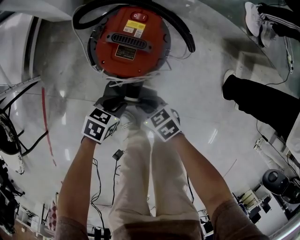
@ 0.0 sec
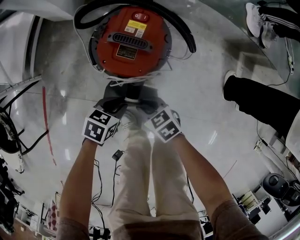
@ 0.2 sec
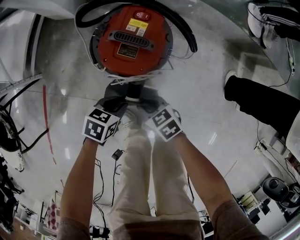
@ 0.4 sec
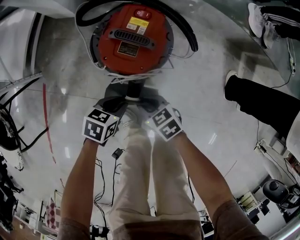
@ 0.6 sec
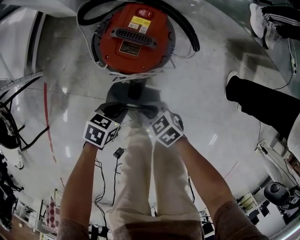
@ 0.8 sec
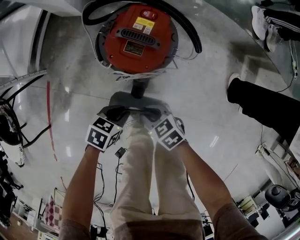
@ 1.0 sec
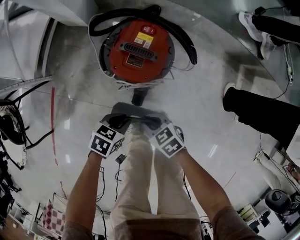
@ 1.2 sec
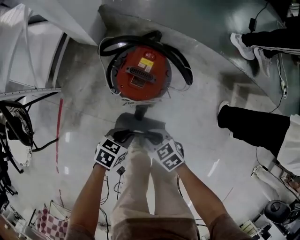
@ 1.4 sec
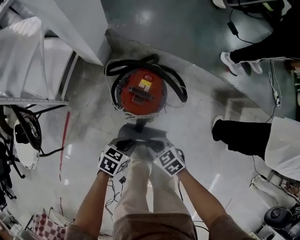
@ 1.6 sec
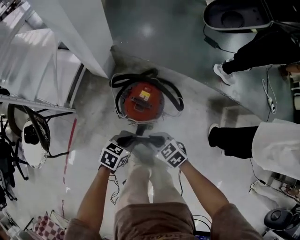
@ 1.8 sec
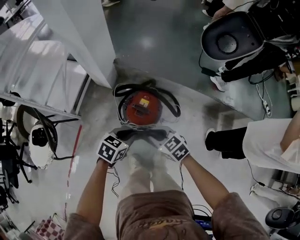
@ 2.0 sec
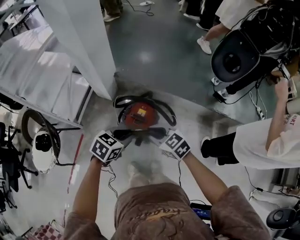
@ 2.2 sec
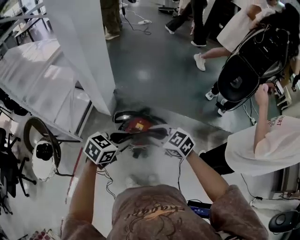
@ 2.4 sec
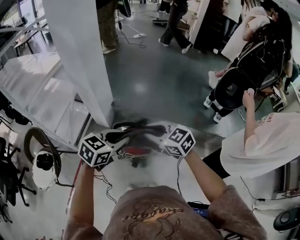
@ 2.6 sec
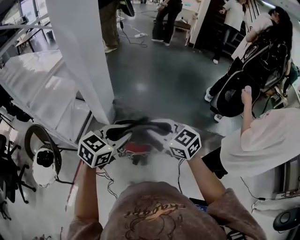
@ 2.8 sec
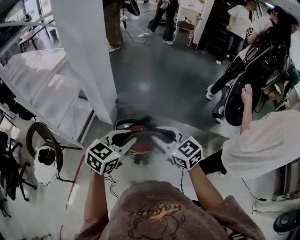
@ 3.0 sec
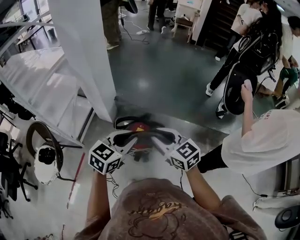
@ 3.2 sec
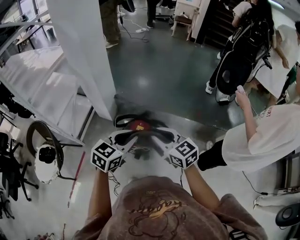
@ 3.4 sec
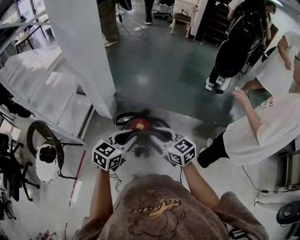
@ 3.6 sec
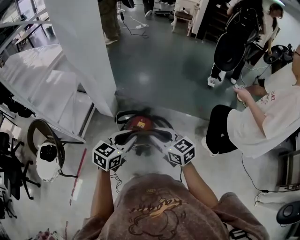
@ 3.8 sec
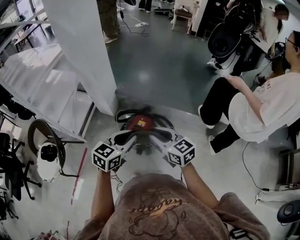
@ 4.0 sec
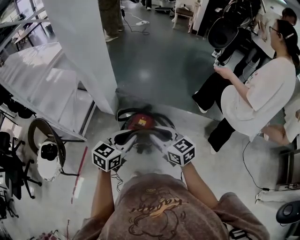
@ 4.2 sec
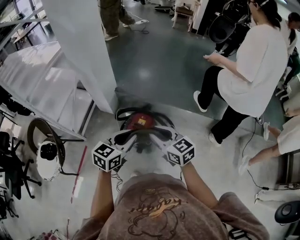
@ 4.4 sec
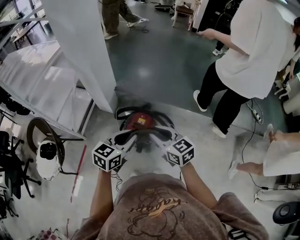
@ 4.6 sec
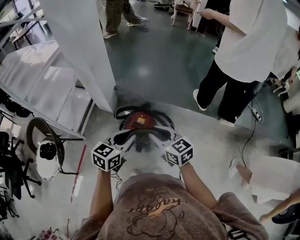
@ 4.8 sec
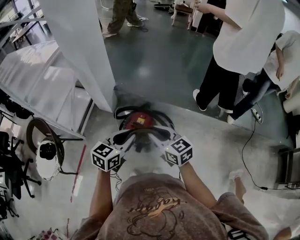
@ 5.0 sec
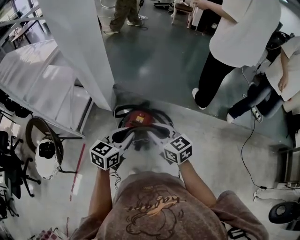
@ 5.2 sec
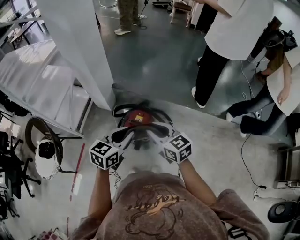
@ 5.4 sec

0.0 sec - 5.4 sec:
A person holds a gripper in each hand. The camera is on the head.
0.0 sec - 1.4 sec: Both grippers move upward, approximately 10 cm.
1.4 sec - 2.8 sec: The grippers both shift upward by roughly 60 cm. The right gripper tilts its fingers about 30 degrees upward, while the left gripper changes its angle by about 40 degrees.
2.8 sec - 4.0 sec: The two grippers go about 10 cm downward.
4.0 sec - 5.4 sec: The grippers move only a little.

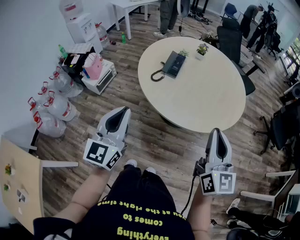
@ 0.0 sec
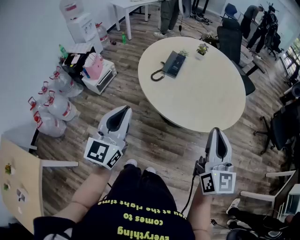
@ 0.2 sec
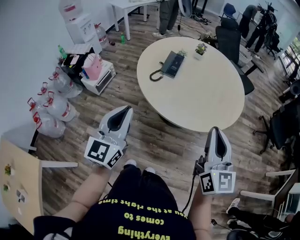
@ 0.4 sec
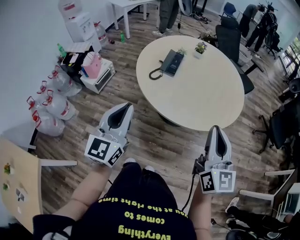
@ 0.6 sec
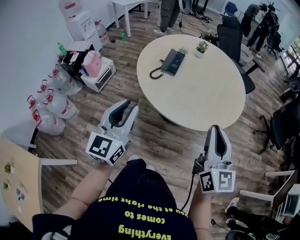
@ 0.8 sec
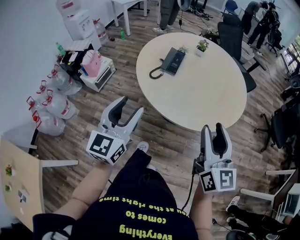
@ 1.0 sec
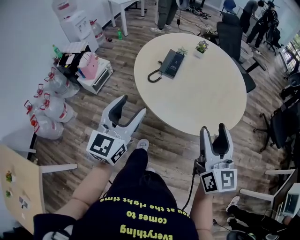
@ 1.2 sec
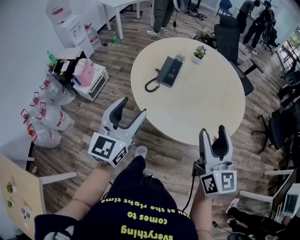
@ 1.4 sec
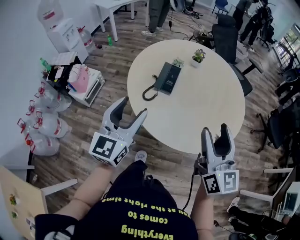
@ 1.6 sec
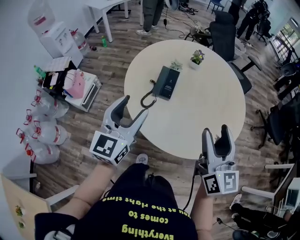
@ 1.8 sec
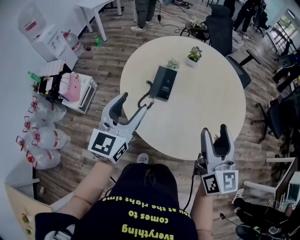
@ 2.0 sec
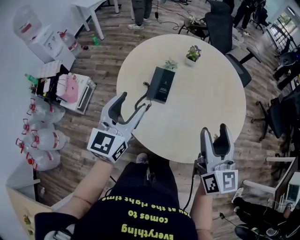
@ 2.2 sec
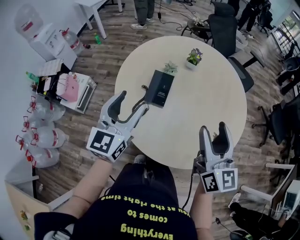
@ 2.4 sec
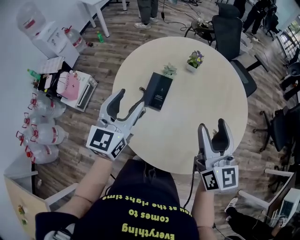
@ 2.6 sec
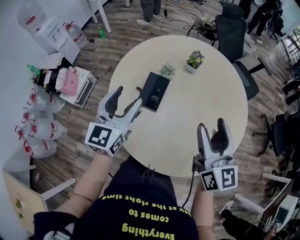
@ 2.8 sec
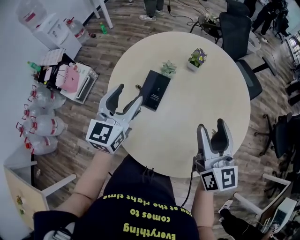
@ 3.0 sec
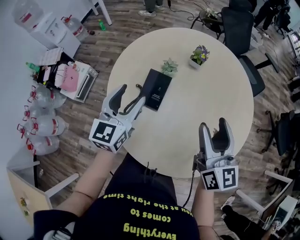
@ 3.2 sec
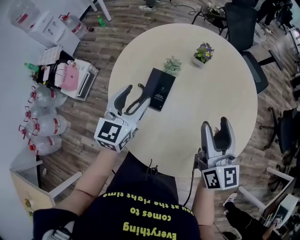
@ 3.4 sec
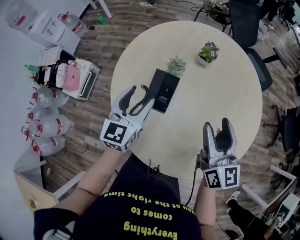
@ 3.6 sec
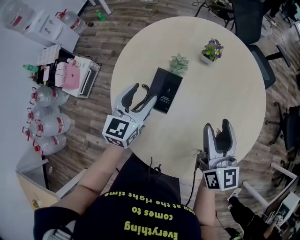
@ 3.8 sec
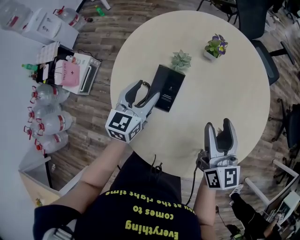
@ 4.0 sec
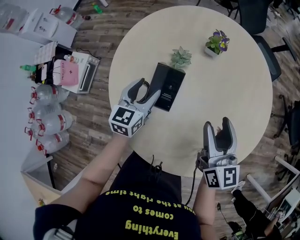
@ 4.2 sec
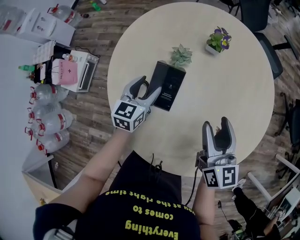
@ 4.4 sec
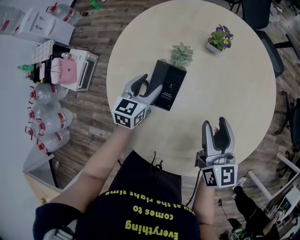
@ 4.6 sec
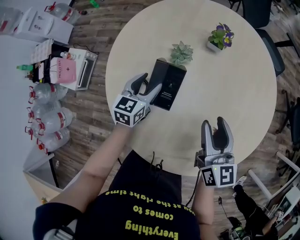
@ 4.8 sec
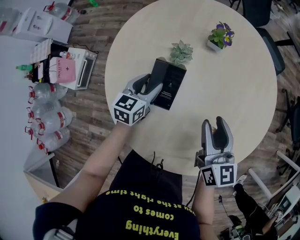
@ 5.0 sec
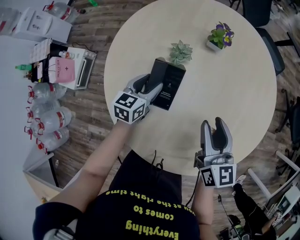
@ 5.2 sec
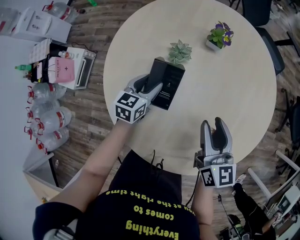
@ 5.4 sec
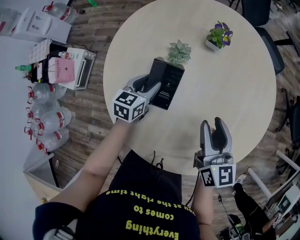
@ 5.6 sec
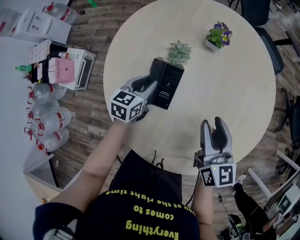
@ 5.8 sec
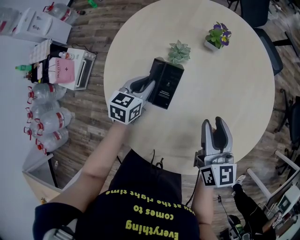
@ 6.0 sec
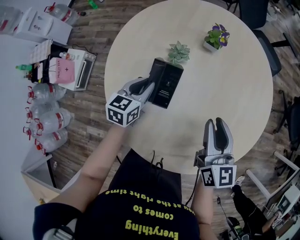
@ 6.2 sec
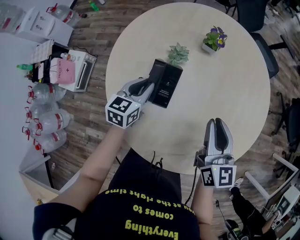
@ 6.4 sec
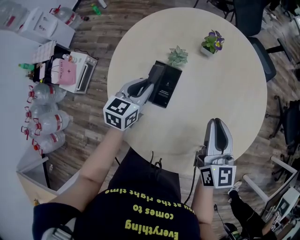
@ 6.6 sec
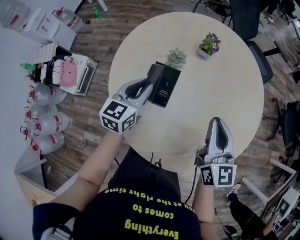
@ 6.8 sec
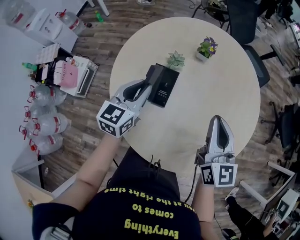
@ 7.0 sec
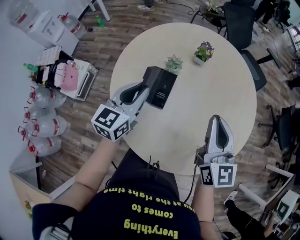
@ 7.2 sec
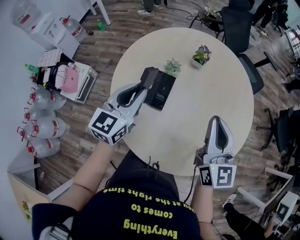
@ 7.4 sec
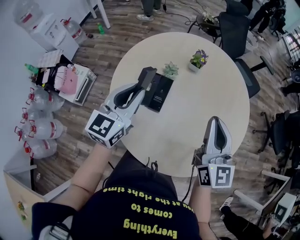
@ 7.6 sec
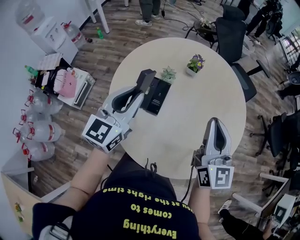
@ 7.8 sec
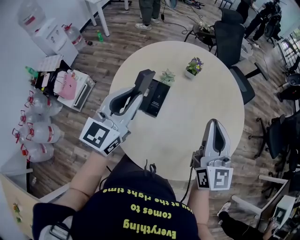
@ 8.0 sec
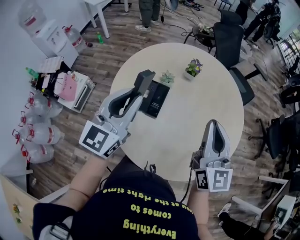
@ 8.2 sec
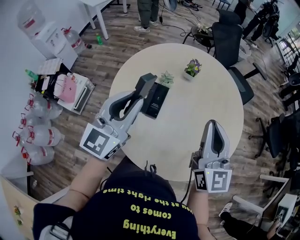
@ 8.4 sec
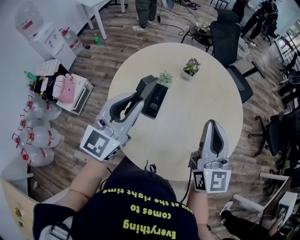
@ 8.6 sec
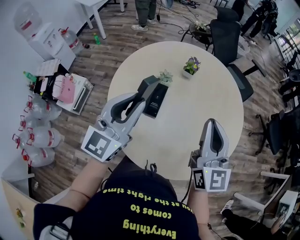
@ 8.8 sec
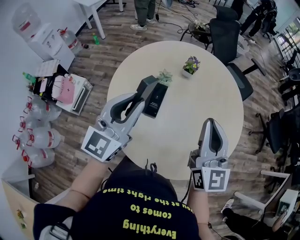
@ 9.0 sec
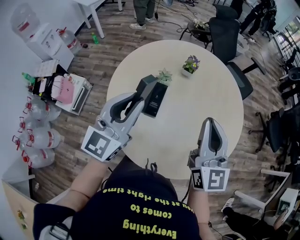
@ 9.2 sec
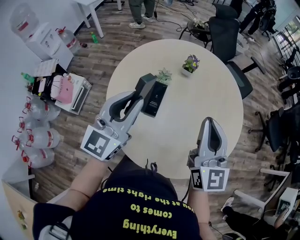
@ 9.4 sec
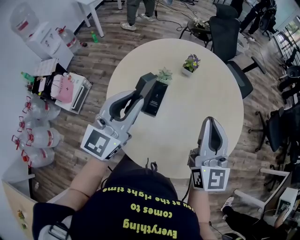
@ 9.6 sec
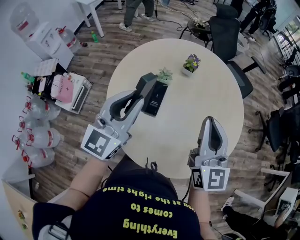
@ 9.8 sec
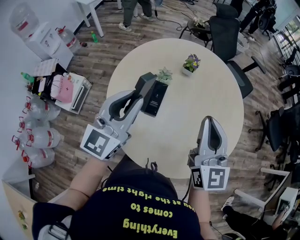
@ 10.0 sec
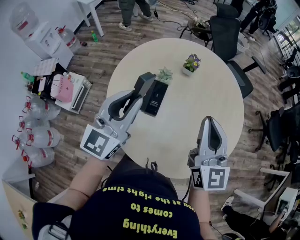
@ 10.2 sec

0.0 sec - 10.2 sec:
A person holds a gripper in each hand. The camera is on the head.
0.0 sec - 1.4 sec: Both grippers move forward, some 10 cm. The left gripper opens. The right gripper opens up.
1.4 sec - 3.0 sec: The two grippers go some 30 cm forward.
3.0 sec - 4.4 sec: The left gripper is displaced downward and forward by some 25 cm, and changes its angle by roughly 20 degrees; the right gripper shifts approximately 15 cm downward and forward.
4.4 sec - 5.8 sec: The left gripper closes up.
5.8 sec - 7.2 sec: The left gripper goes about 20 cm upward and backward, and swivels approximately 20 degrees. The right gripper is displaced upward by about 15 cm, and closes.
7.2 sec - 8.8 sec: The left gripper heads upward and backward, covering approximately 15 cm, and swivels approximately 20 degrees. The right gripper travels upward by some 5 cm.
8.8 sec - 10.2 sec: The grippers make only small movements.

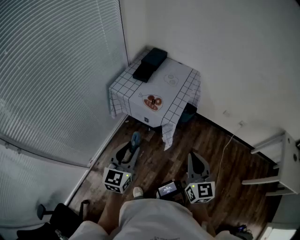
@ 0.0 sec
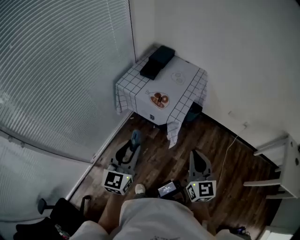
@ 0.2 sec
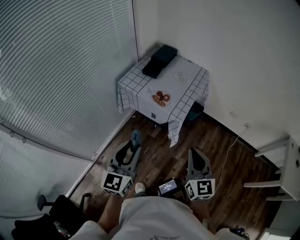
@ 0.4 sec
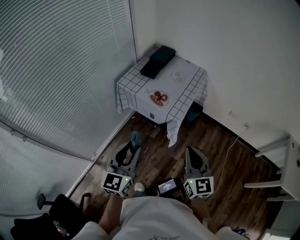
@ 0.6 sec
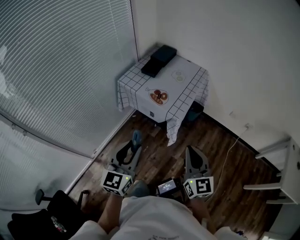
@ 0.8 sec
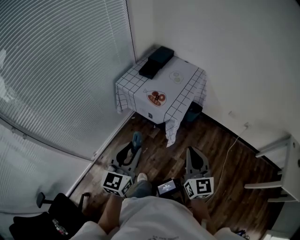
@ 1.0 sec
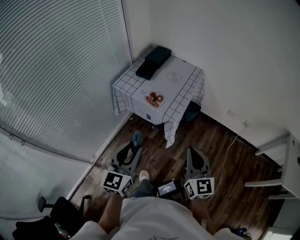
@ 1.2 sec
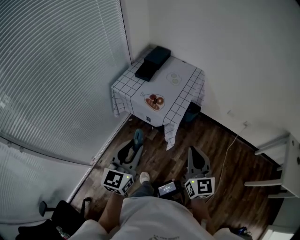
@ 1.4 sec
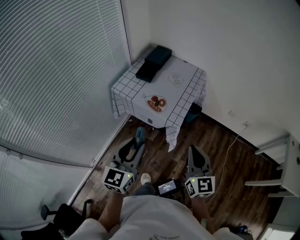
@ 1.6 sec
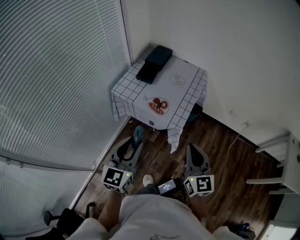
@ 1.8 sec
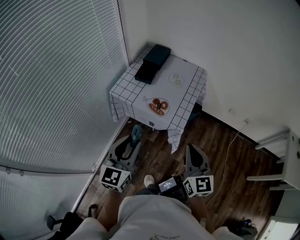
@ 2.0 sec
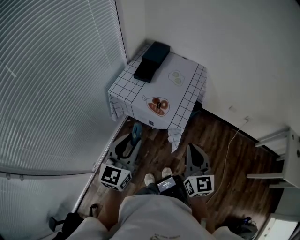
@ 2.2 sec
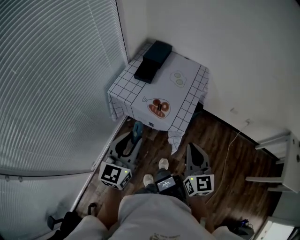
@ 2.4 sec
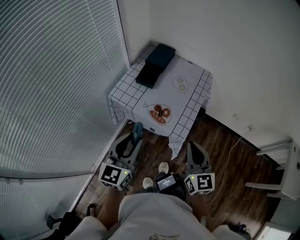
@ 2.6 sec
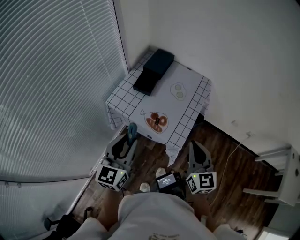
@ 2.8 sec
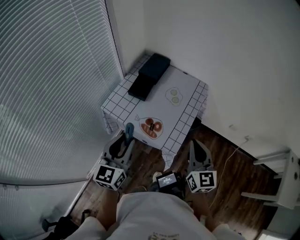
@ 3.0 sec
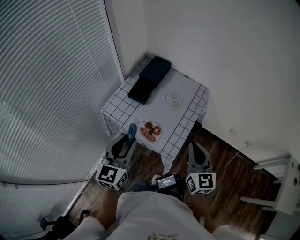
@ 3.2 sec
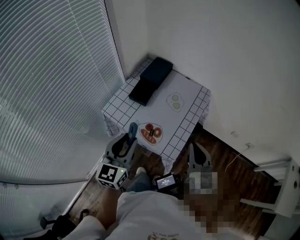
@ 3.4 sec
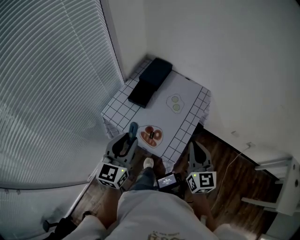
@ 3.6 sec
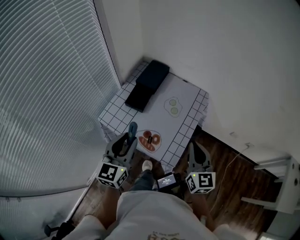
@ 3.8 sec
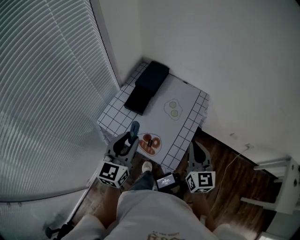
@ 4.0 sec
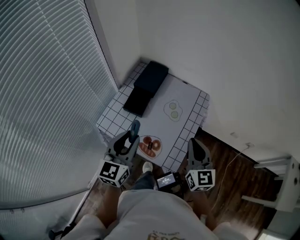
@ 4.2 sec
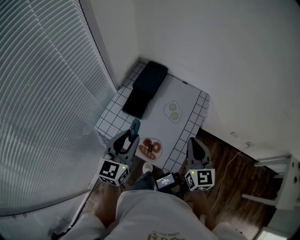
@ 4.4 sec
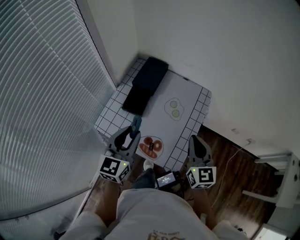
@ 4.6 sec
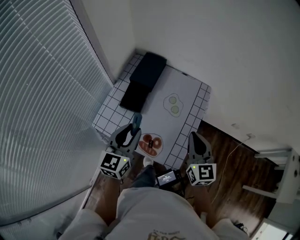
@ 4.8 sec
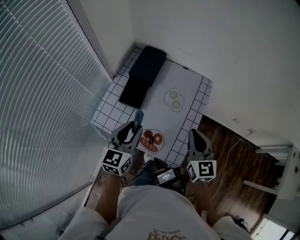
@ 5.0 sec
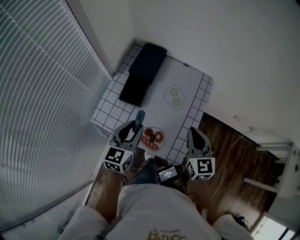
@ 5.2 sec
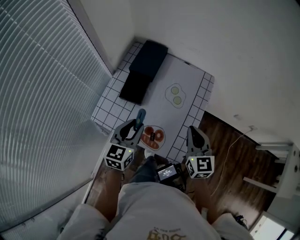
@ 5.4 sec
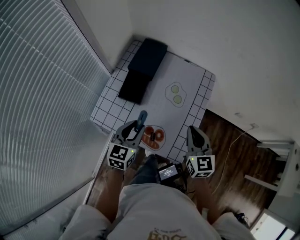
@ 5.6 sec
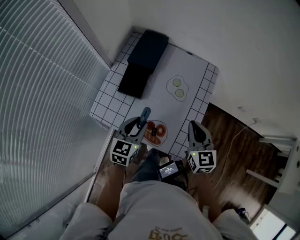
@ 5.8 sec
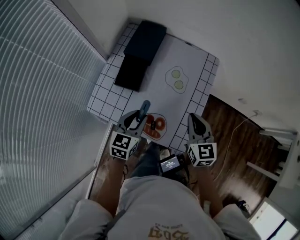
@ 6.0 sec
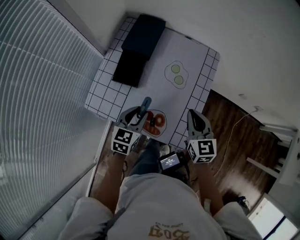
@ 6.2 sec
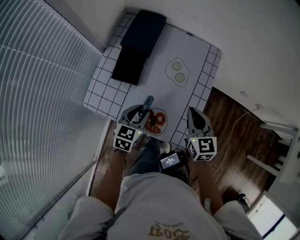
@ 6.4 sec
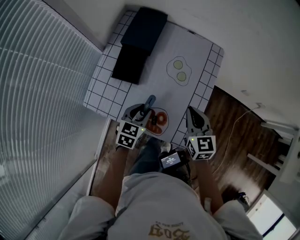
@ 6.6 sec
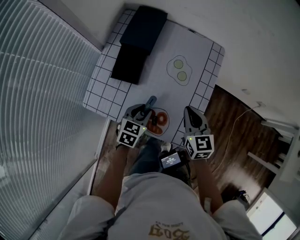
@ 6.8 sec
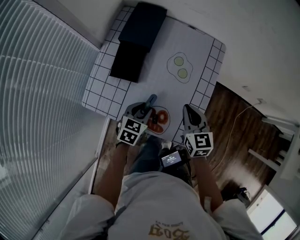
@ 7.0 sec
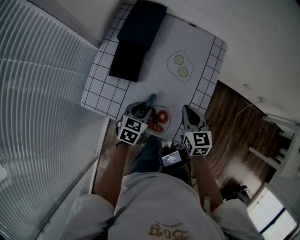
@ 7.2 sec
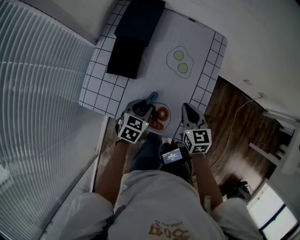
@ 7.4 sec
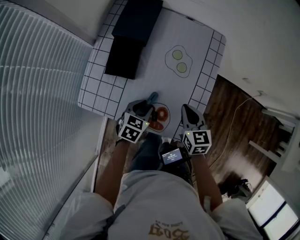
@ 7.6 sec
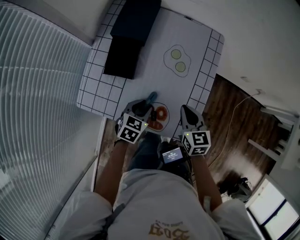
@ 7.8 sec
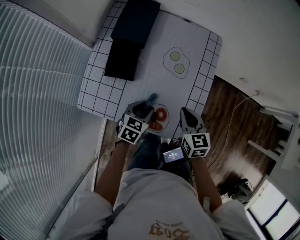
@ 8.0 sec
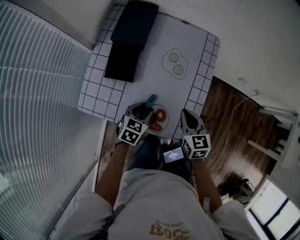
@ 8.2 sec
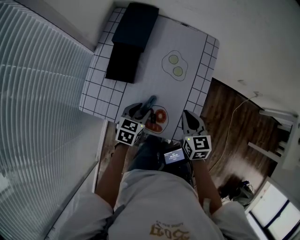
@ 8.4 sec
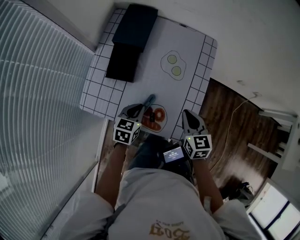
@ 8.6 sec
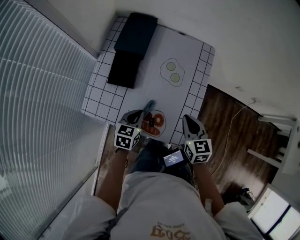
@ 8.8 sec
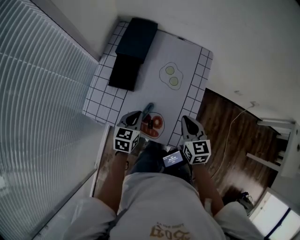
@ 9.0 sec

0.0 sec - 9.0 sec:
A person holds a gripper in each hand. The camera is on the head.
0.0 sec - 1.6 sec: The left gripper shifts by roughly 5 cm. The right gripper travels forward by roughly 5 cm.
1.6 sec - 3.0 sec: Both grippers move forward, roughly 20 cm.
3.0 sec - 4.4 sec: The grippers both shift forward by approximately 15 cm.
4.4 sec - 6.0 sec: The two grippers go roughly 15 cm downward. The left gripper rotates about 20 degrees.
6.0 sec - 7.6 sec: Both grippers move downward, some 15 cm. The left gripper swivels roughly 20 degrees.
7.6 sec - 9.0 sec: The grippers both shift upward by roughly 5 cm. The left gripper closes up.
